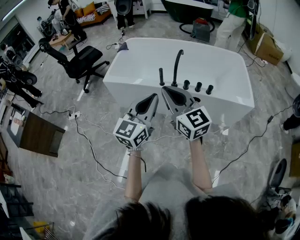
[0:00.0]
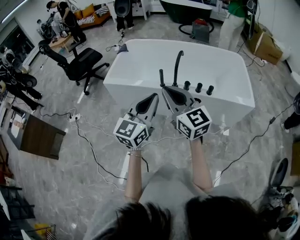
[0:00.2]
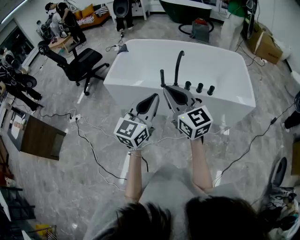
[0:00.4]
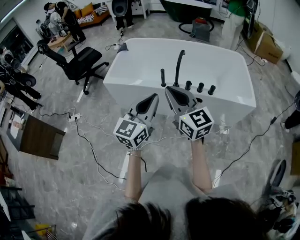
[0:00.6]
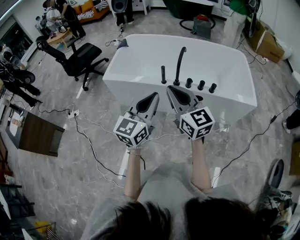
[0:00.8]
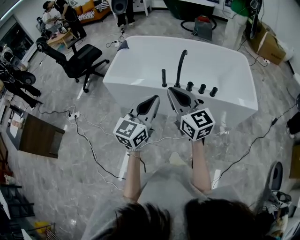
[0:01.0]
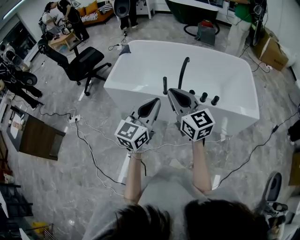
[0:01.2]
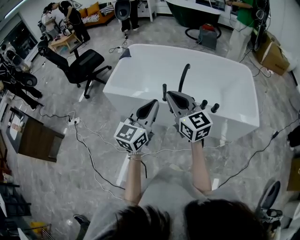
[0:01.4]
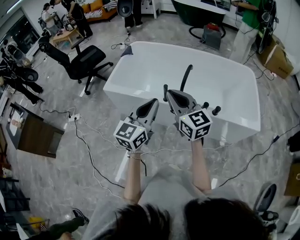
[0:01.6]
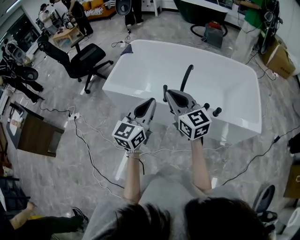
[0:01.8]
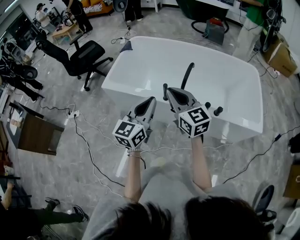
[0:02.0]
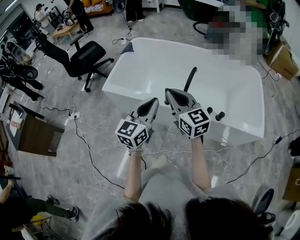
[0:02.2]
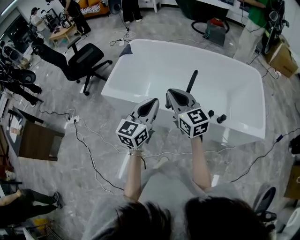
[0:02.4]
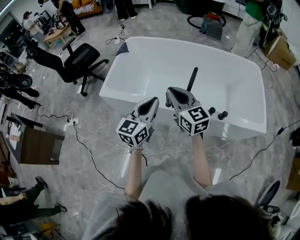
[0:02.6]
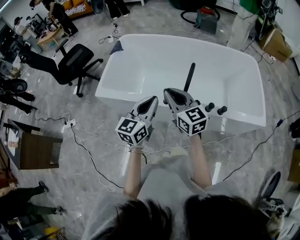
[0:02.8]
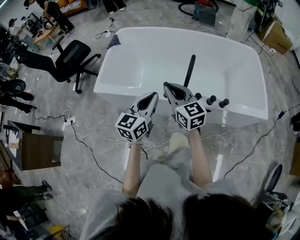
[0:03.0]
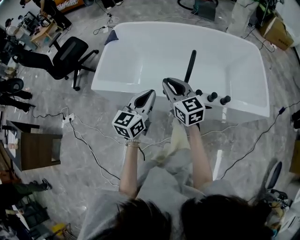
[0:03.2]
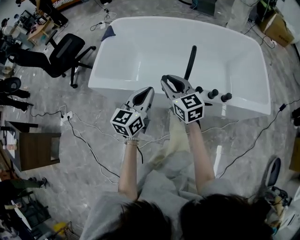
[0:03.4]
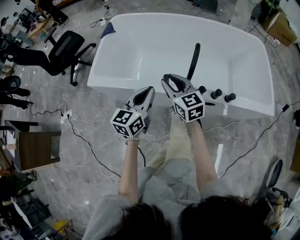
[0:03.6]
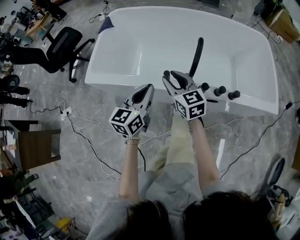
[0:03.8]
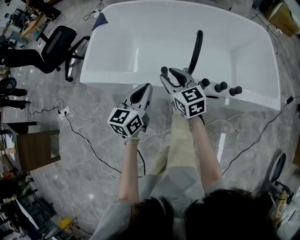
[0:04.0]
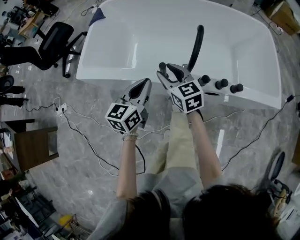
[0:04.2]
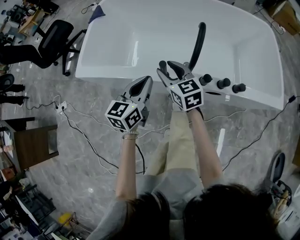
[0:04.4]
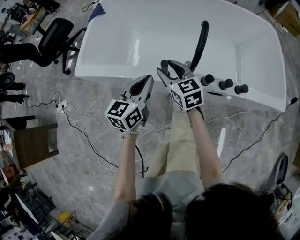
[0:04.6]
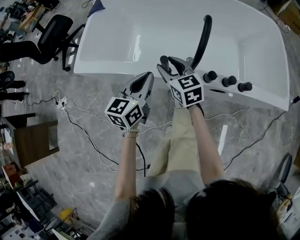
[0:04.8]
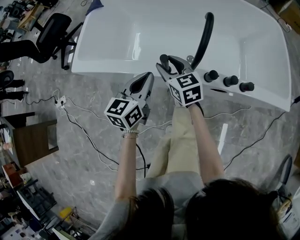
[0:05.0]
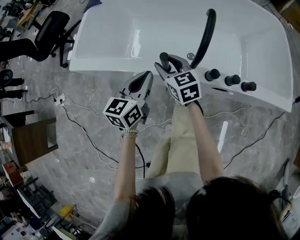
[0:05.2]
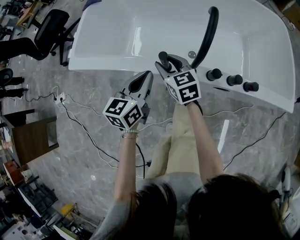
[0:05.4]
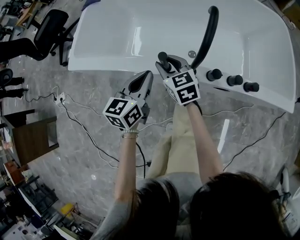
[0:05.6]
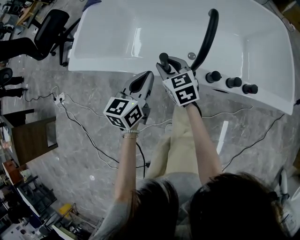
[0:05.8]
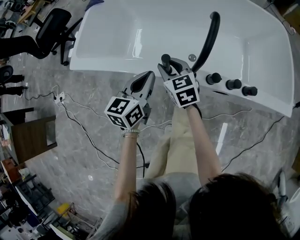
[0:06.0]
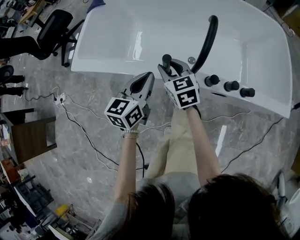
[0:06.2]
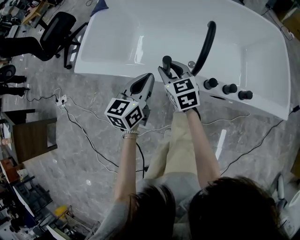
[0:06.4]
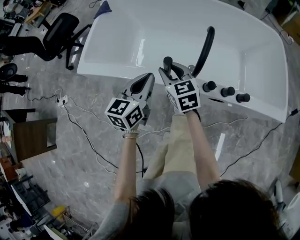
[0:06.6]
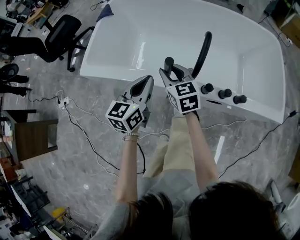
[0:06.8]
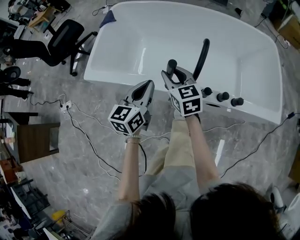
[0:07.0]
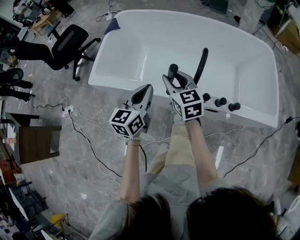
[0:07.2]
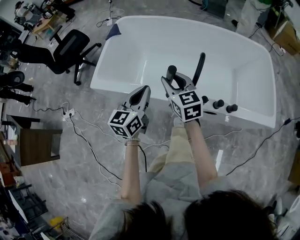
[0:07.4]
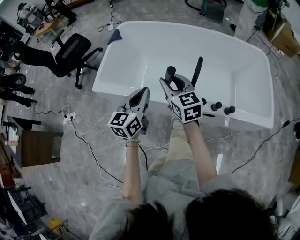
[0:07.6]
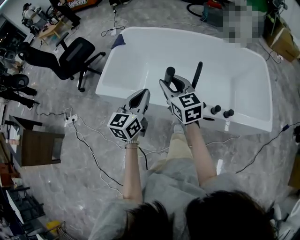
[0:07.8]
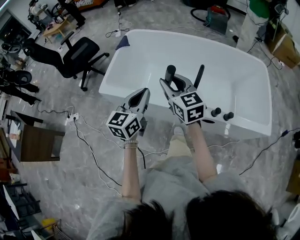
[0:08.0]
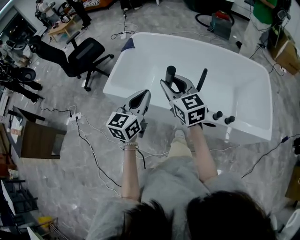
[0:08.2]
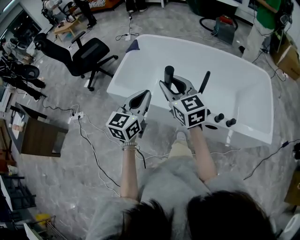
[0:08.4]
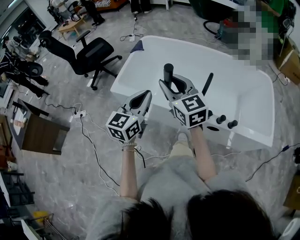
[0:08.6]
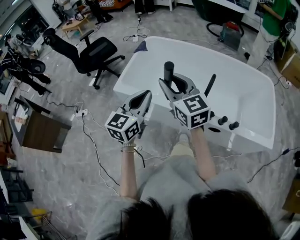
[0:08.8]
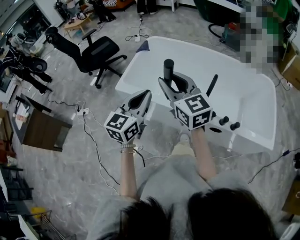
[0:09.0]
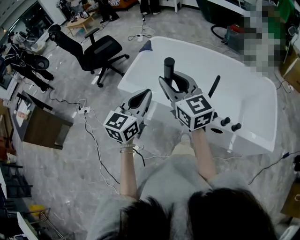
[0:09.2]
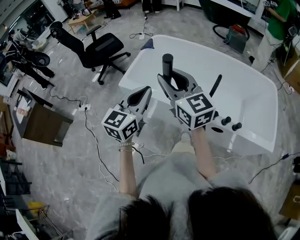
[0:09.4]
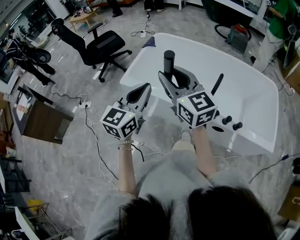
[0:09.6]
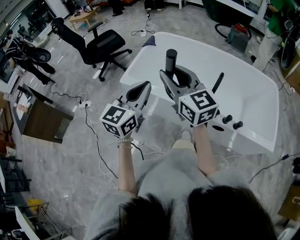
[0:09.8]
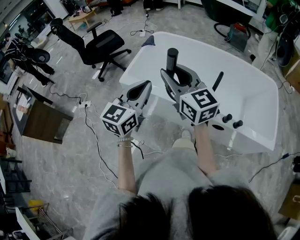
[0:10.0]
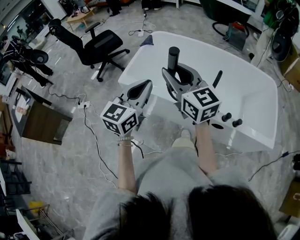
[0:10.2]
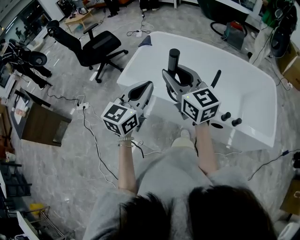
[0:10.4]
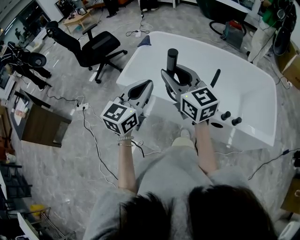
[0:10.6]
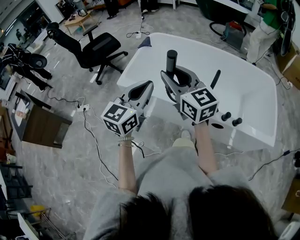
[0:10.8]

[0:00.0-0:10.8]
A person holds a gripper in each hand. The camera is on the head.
0:00.0 to 0:01.6: The grippers both shift forward by approximately 15 cm.
0:01.6 to 0:03.0: Both grippers travel together forward and downward, some 20 cm.
0:03.0 to 0:04.6: The two grippers go approximately 20 cm downward and forward. The right gripper opens up.
0:04.6 to 0:06.2: The right gripper ends up approximately 5 cm from where it was.
0:06.2 to 0:07.8: Both grippers travel together upward, approximately 25 cm.
0:07.8 to 0:09.2: The two grippers go roughly 20 cm upward, to the left and backward.
0:09.2 to 0:10.8: The grippers make only small movements.

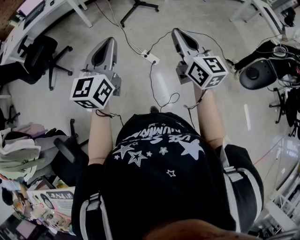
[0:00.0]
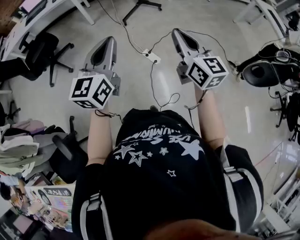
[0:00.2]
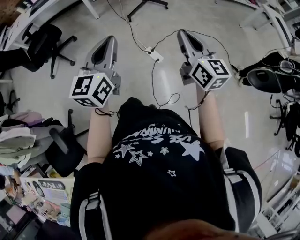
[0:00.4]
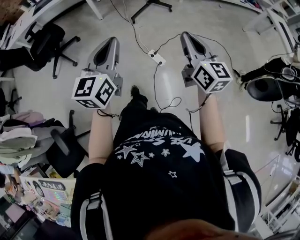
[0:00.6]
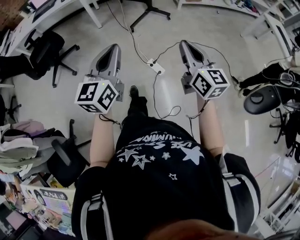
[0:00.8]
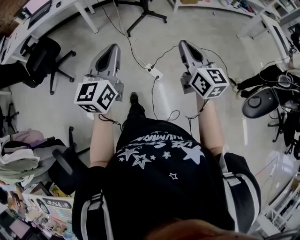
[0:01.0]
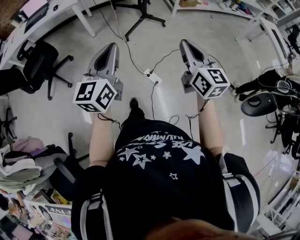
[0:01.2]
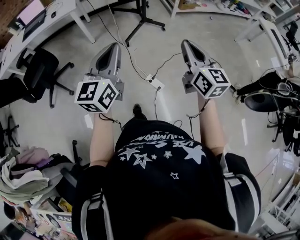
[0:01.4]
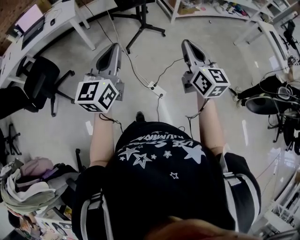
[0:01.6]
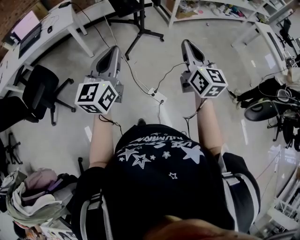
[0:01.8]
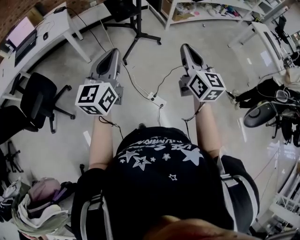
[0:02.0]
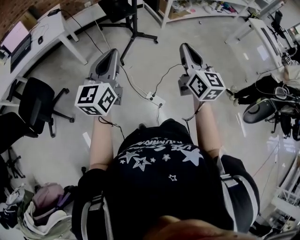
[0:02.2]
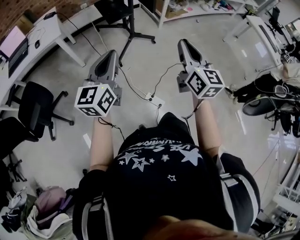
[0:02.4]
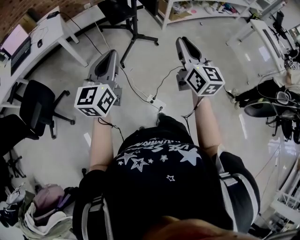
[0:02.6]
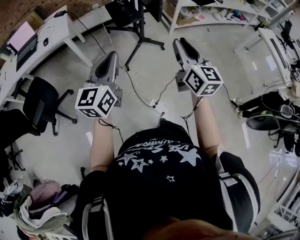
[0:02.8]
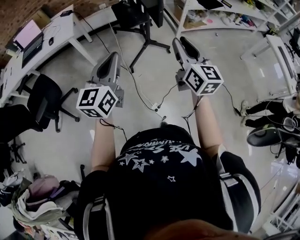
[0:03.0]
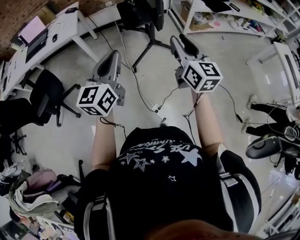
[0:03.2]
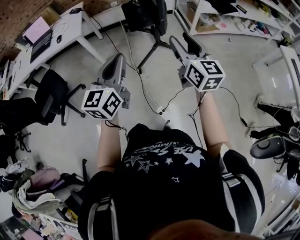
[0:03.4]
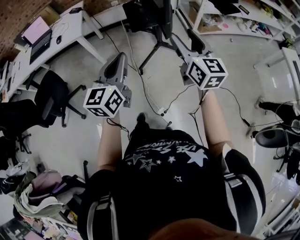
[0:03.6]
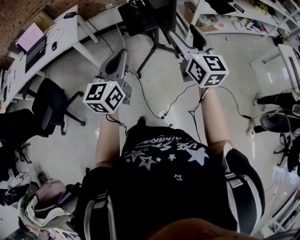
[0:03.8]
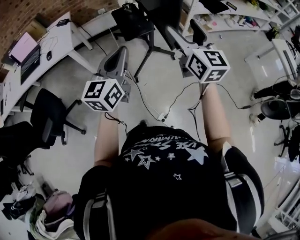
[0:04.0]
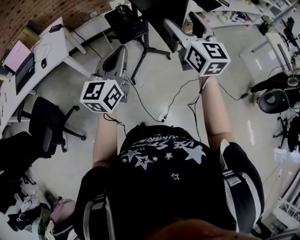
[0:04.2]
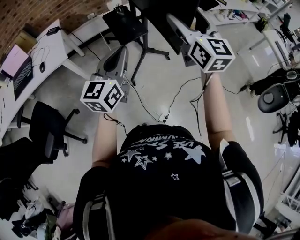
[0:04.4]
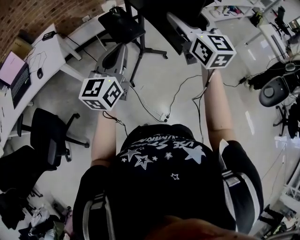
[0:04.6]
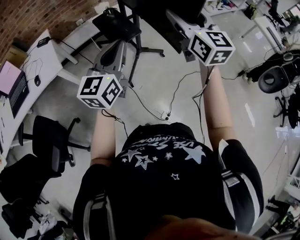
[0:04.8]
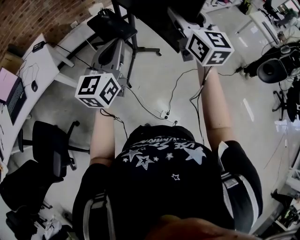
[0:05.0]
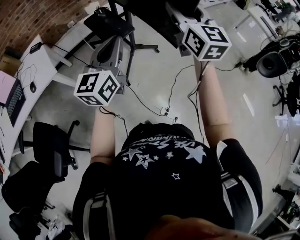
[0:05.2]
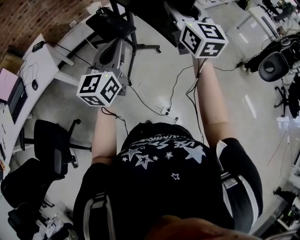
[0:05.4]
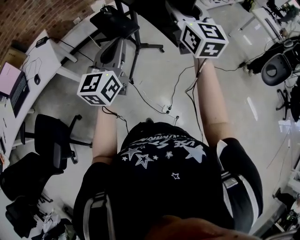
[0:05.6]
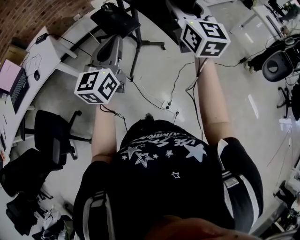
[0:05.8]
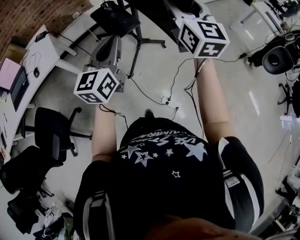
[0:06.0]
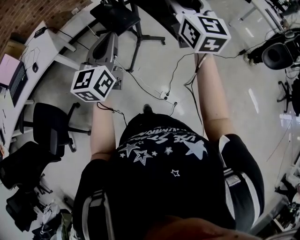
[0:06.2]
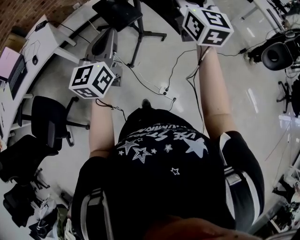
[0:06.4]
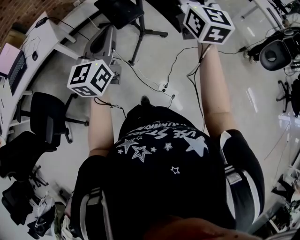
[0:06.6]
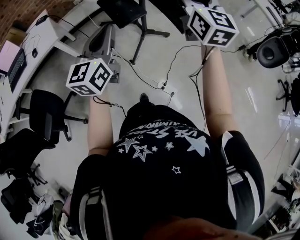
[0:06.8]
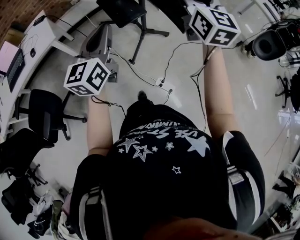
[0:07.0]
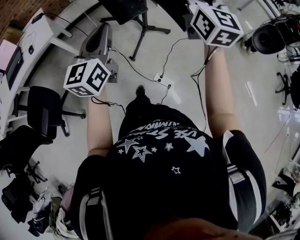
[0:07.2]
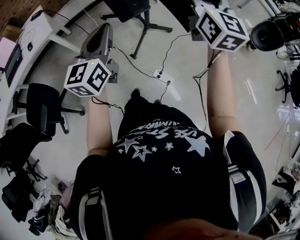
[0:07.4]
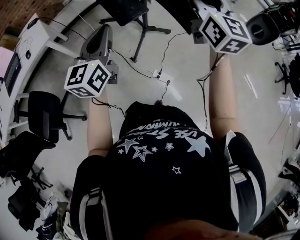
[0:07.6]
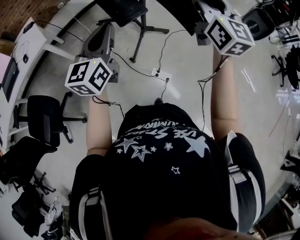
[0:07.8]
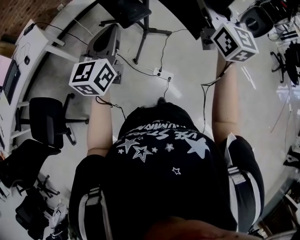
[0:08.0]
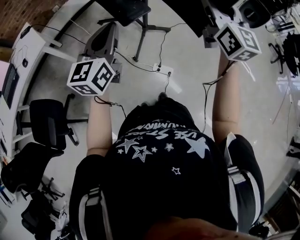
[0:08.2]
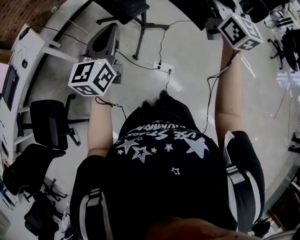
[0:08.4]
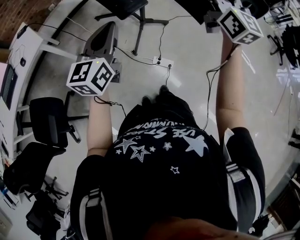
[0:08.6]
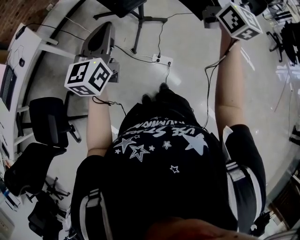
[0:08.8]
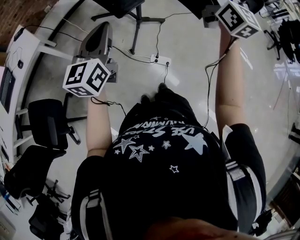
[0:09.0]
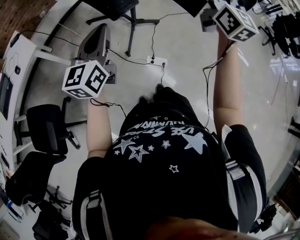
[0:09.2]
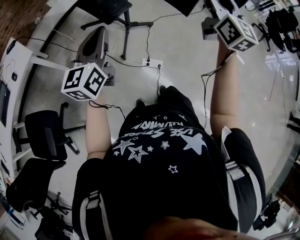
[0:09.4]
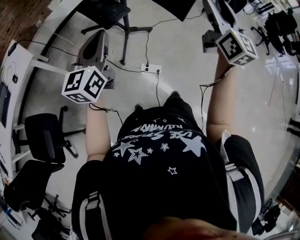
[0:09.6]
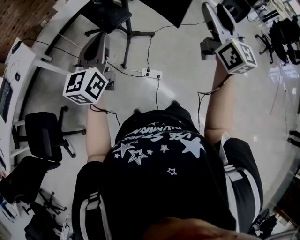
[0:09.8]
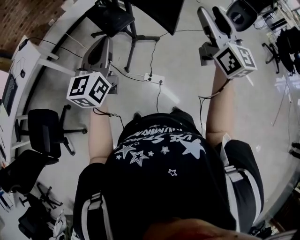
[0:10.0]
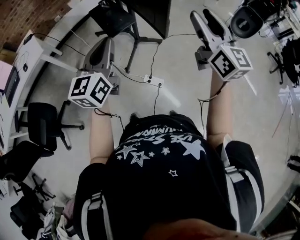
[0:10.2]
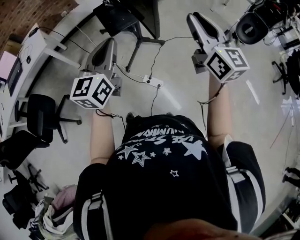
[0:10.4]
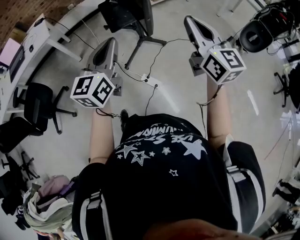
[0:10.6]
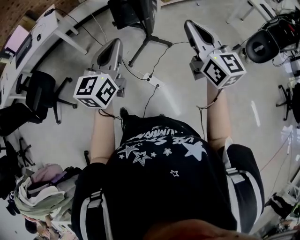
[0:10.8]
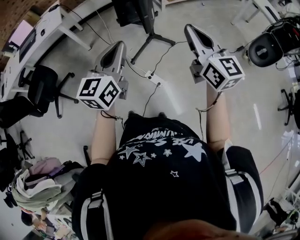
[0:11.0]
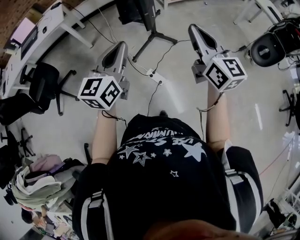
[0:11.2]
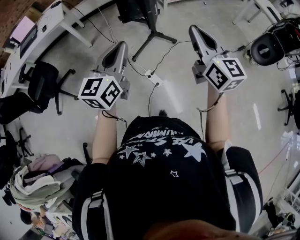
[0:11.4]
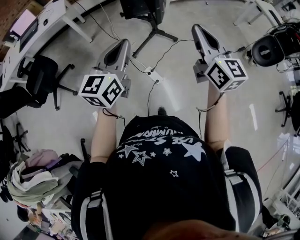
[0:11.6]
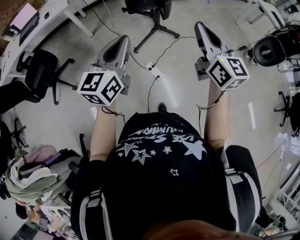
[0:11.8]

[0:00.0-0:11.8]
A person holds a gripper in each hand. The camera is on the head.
0:00.0 to 0:01.4: The two grippers go roughly 20 cm forward.
0:01.4 to 0:03.0: The grippers both shift forward by about 25 cm.
0:03.0 to 0:04.4: The right gripper goes some 25 cm forward and upward, and opens. Meanwhile the left gripper is displaced forward by some 20 cm.
0:04.4 to 0:06.0: The right gripper moves backward, roughly 5 cm, and closes up.
0:06.0 to 0:07.4: The left gripper heads backward, covering approximately 15 cm. Meanwhile the right gripper shifts some 20 cm backward and to the right.
0:07.4 to 0:08.8: Both grippers move backward, approximately 5 cm.
0:08.8 to 0:10.4: The grippers both shift to the right by some 20 cm.
0:10.4 to 0:11.8: The left gripper is displaced backward by some 10 cm. The right gripper goes approximately 5 cm backward.

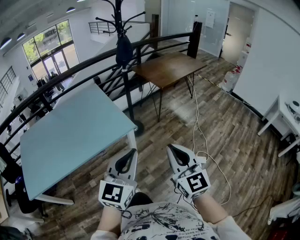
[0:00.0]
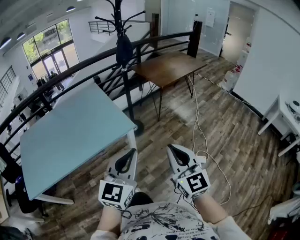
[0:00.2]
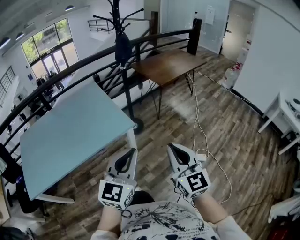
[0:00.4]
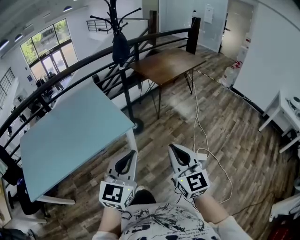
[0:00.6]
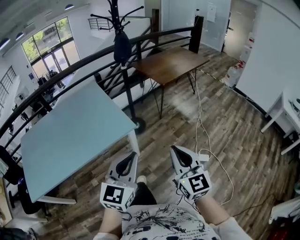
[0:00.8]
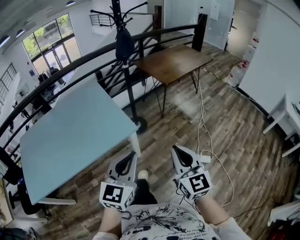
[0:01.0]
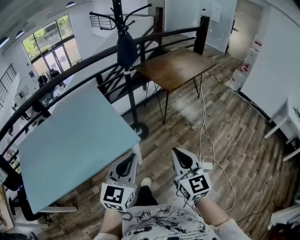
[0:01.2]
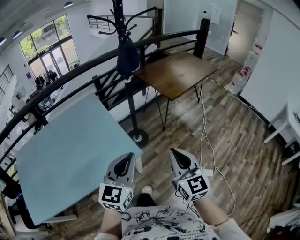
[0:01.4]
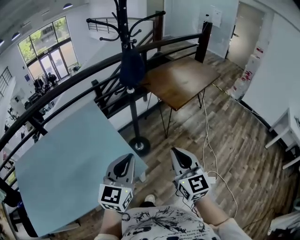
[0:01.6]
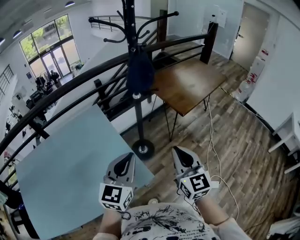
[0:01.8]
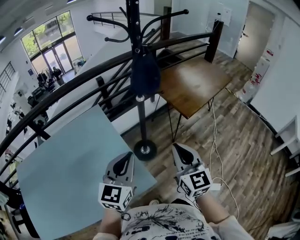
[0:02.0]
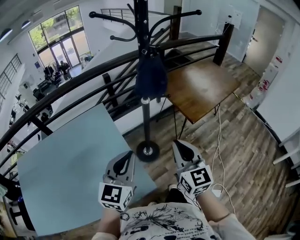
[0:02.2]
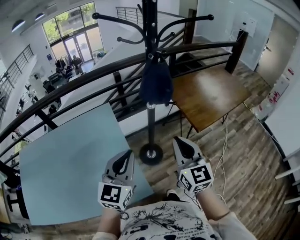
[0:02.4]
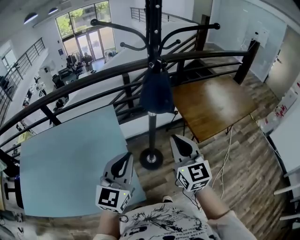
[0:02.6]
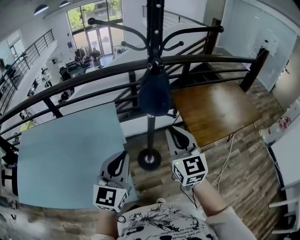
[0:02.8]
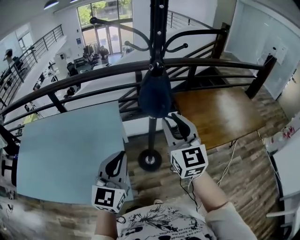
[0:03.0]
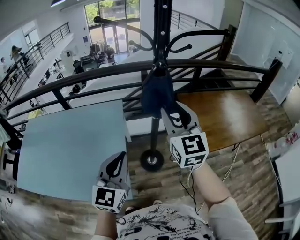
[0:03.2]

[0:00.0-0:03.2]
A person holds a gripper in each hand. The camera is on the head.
0:00.0 to 0:01.6: The grippers both shift forward by roughly 40 cm.
0:01.6 to 0:03.2: The right gripper changes place by about 40 cm, swivels some 30 degrees, and opens up. Meanwhile the left gripper changes place by roughly 20 cm, and changes its angle by roughly 30 degrees.
